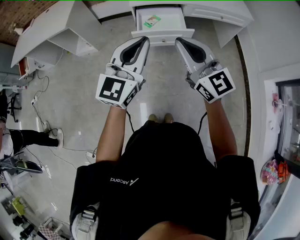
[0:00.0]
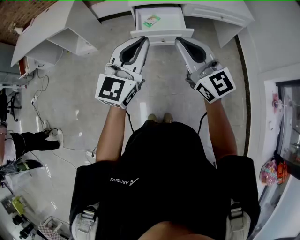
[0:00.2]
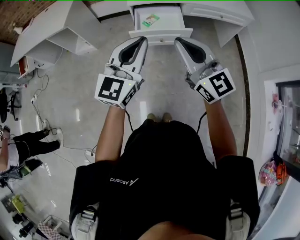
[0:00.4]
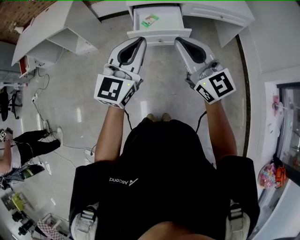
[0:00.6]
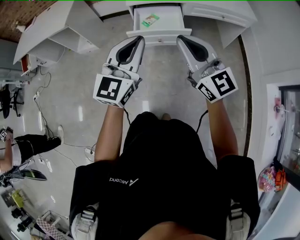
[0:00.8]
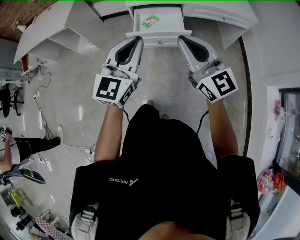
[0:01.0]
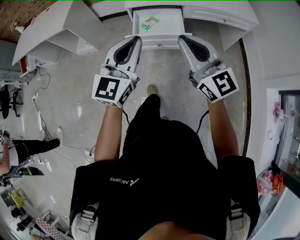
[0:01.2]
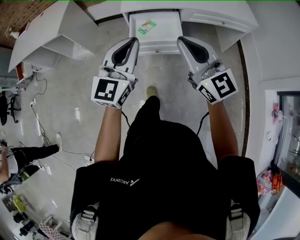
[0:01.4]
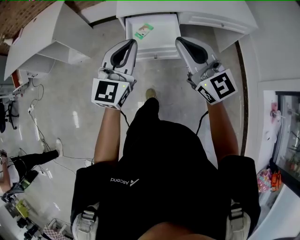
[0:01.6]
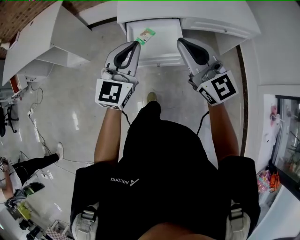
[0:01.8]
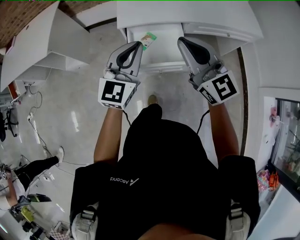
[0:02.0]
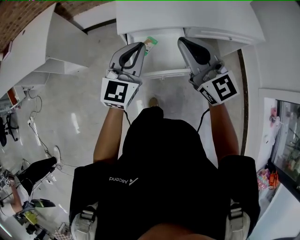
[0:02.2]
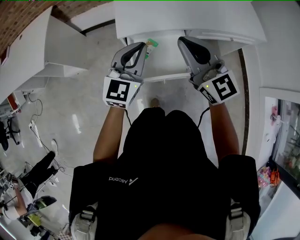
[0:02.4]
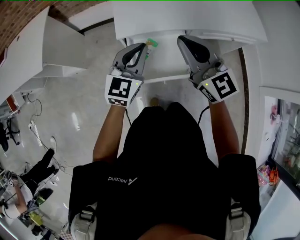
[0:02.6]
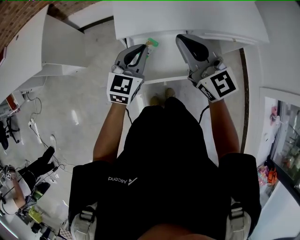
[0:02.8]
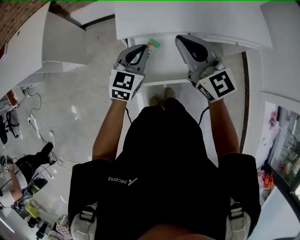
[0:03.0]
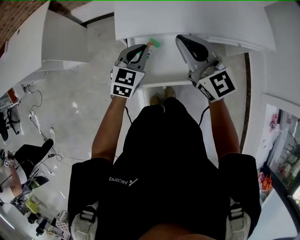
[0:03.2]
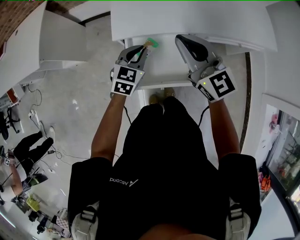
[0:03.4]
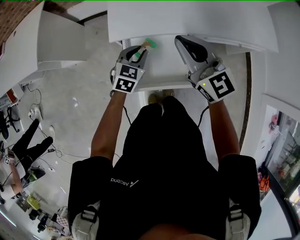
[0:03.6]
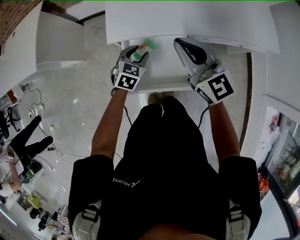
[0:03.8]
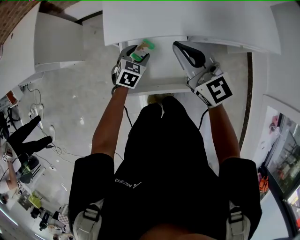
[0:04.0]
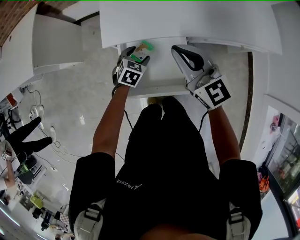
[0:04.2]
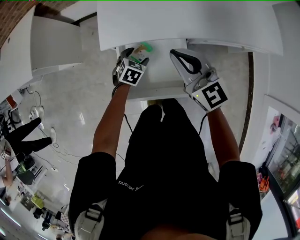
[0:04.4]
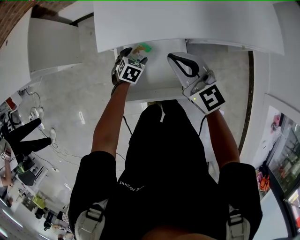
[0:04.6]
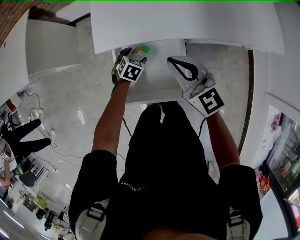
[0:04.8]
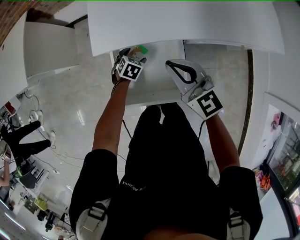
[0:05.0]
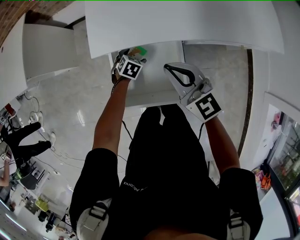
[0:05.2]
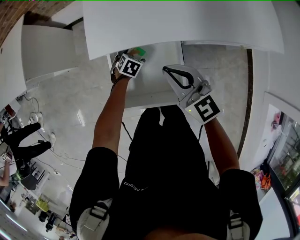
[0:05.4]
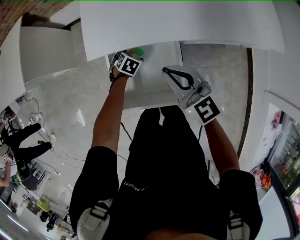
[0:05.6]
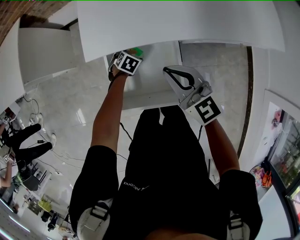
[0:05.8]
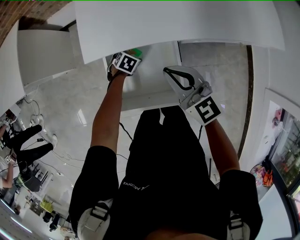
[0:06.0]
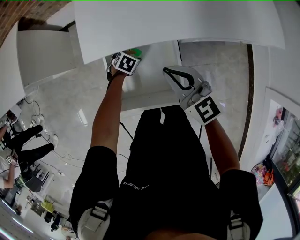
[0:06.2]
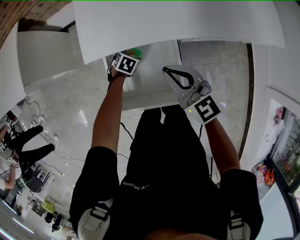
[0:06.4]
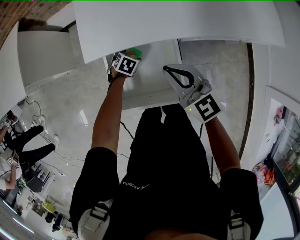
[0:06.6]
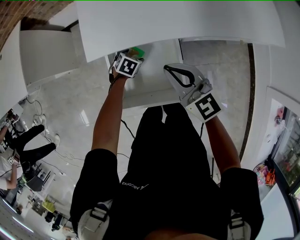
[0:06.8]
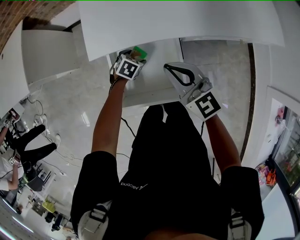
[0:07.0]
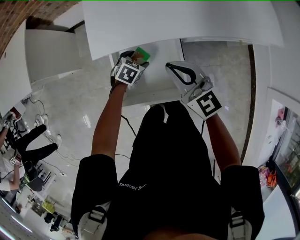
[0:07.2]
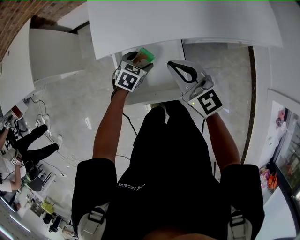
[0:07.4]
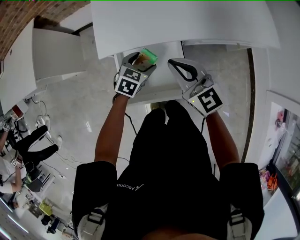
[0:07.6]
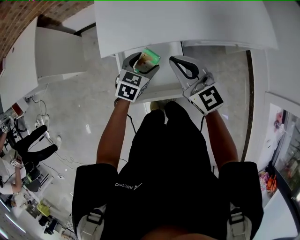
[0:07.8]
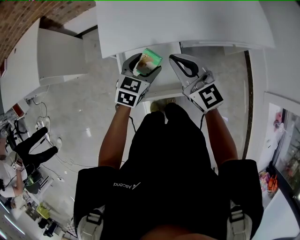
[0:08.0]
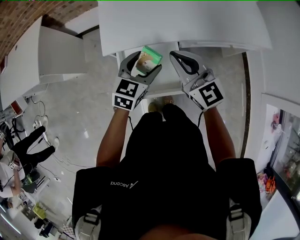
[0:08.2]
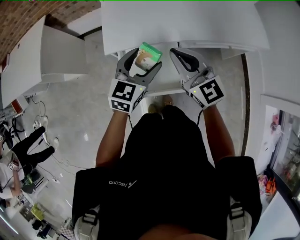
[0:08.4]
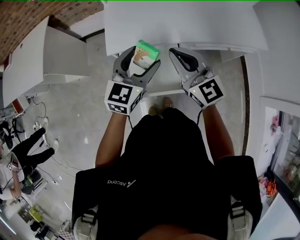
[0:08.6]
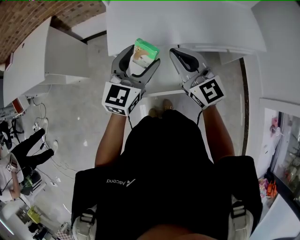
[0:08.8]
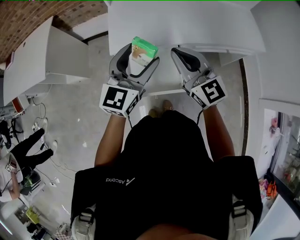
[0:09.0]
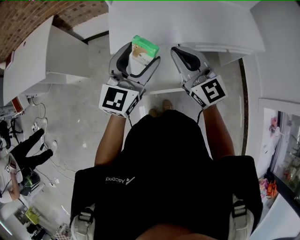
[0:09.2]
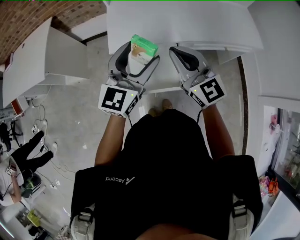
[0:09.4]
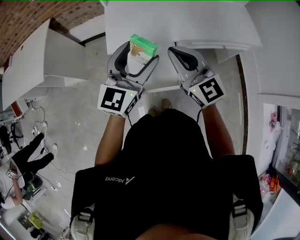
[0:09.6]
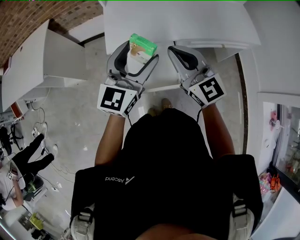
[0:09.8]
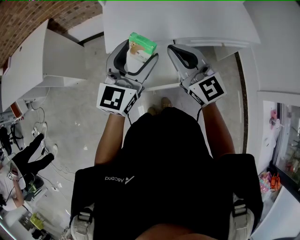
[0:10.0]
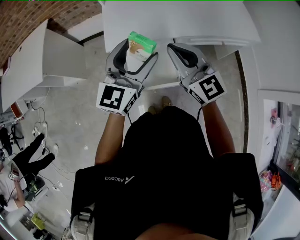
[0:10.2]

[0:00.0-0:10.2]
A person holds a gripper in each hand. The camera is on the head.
0:00.0 to 0:01.4: The right gripper heads forward and to the right, covering some 15 cm, while the left gripper shifts some 15 cm forward.
0:01.4 to 0:03.0: The left gripper shifts some 40 cm forward and downward, and turns by some 20 degrees. Meanwhile the right gripper goes roughly 35 cm forward.
0:03.0 to 0:04.4: The left gripper travels downward by some 25 cm, points its fingers some 40 degrees further downward, and opens. The right gripper is displaced downward, forward and to the right by roughly 15 cm.
0:04.4 to 0:05.8: The left gripper is displaced downward by approximately 10 cm, while the right gripper is displaced downward by about 5 cm.
0:05.8 to 0:07.2: The left gripper moves upward, some 10 cm.
0:07.2 to 0:08.8: The left gripper travels upward by some 40 cm, and points its fingers approximately 50 degrees further upward, while the right gripper heads upward, covering approximately 15 cm.
0:08.8 to 0:10.2: The left gripper is displaced upward by some 5 cm.

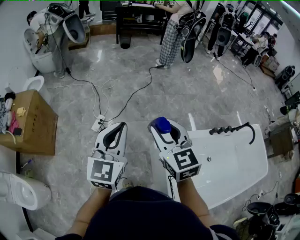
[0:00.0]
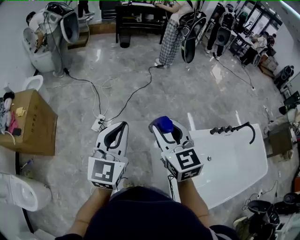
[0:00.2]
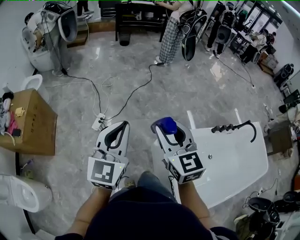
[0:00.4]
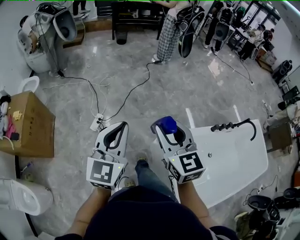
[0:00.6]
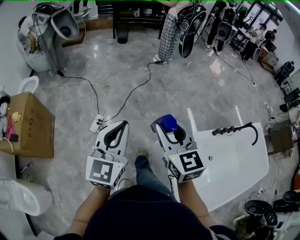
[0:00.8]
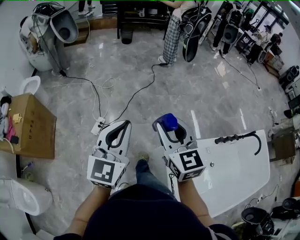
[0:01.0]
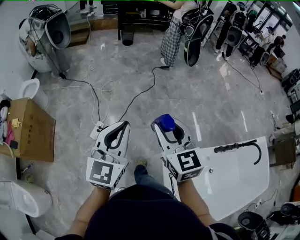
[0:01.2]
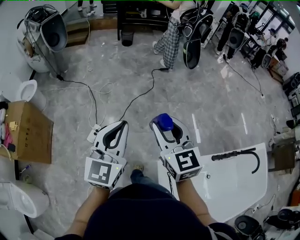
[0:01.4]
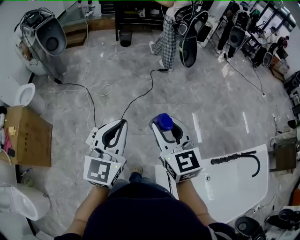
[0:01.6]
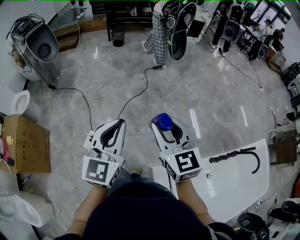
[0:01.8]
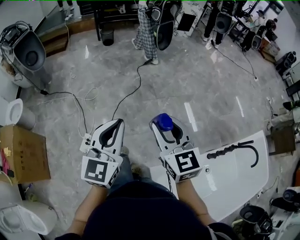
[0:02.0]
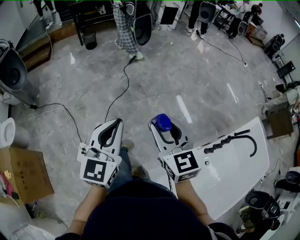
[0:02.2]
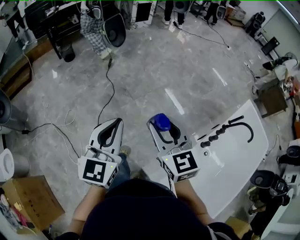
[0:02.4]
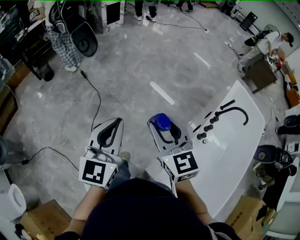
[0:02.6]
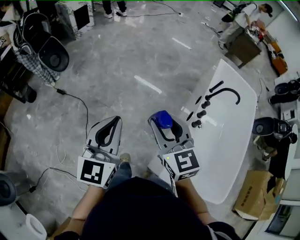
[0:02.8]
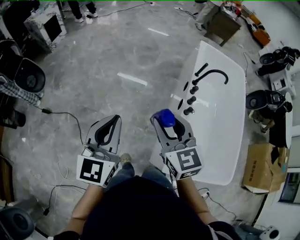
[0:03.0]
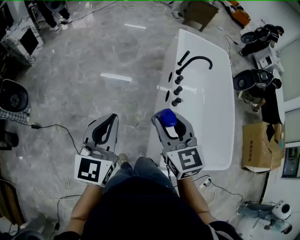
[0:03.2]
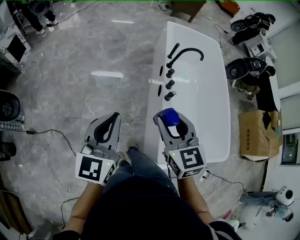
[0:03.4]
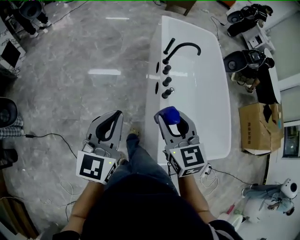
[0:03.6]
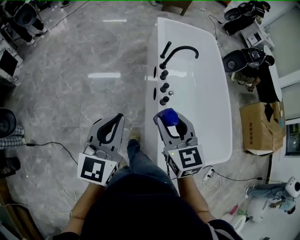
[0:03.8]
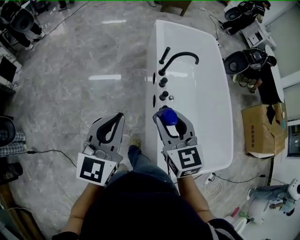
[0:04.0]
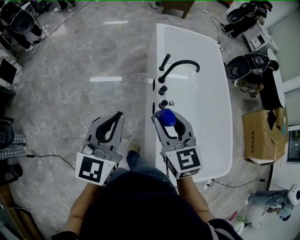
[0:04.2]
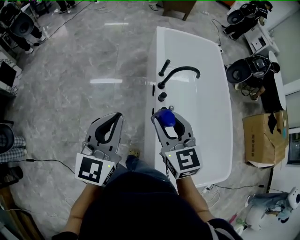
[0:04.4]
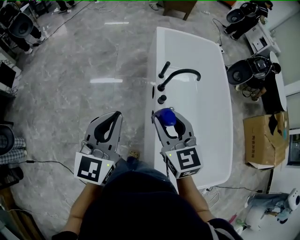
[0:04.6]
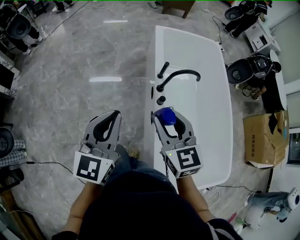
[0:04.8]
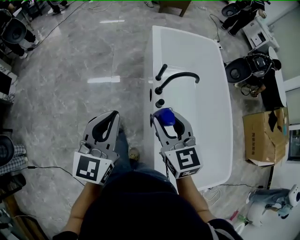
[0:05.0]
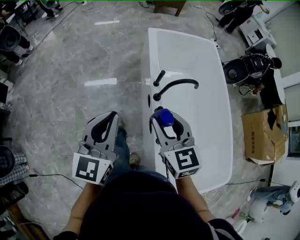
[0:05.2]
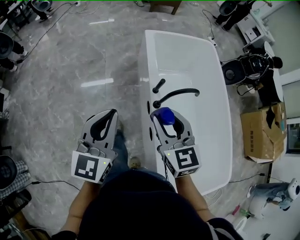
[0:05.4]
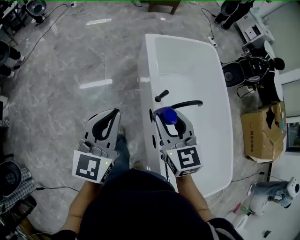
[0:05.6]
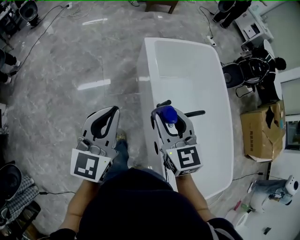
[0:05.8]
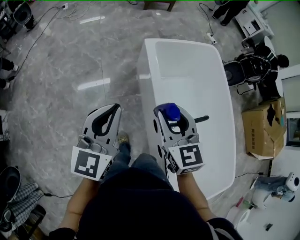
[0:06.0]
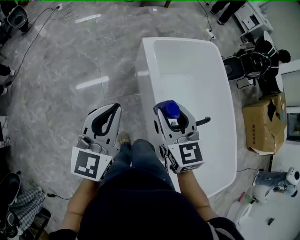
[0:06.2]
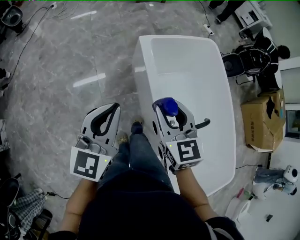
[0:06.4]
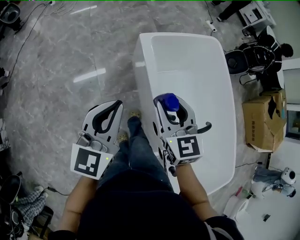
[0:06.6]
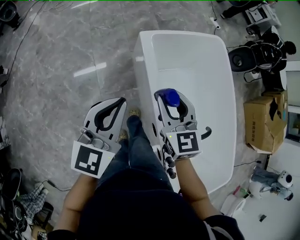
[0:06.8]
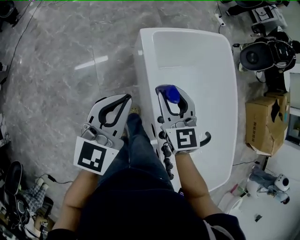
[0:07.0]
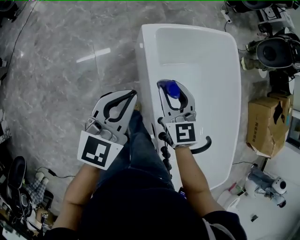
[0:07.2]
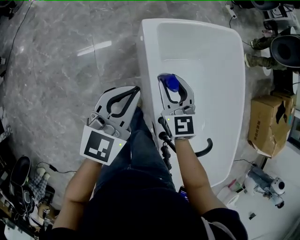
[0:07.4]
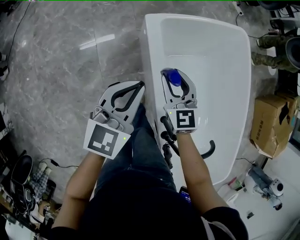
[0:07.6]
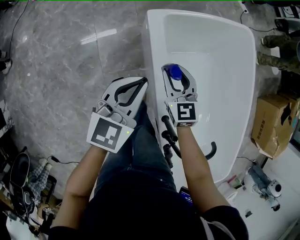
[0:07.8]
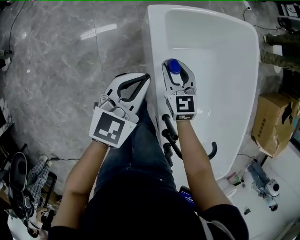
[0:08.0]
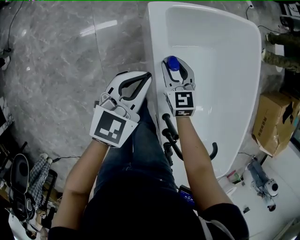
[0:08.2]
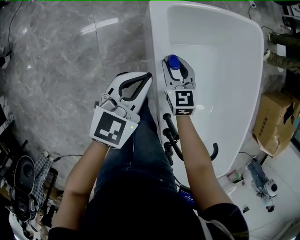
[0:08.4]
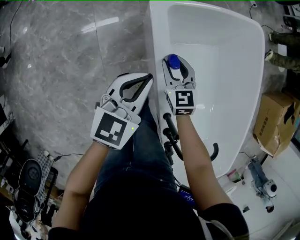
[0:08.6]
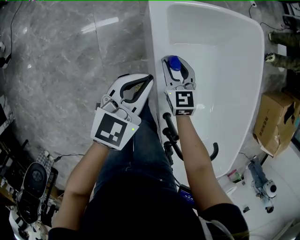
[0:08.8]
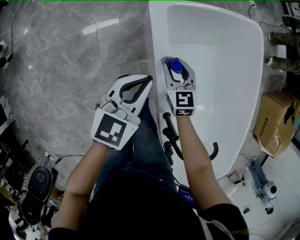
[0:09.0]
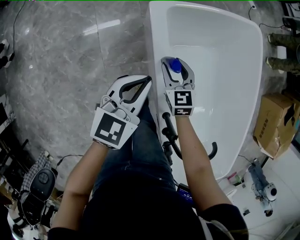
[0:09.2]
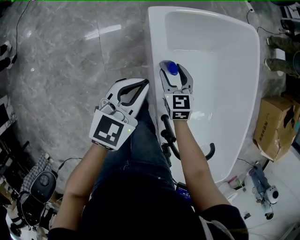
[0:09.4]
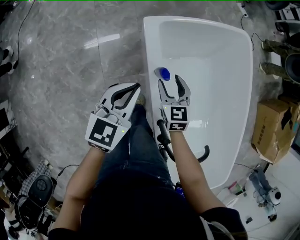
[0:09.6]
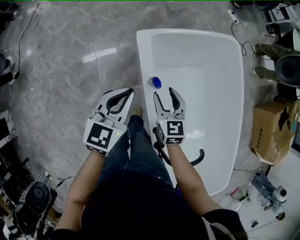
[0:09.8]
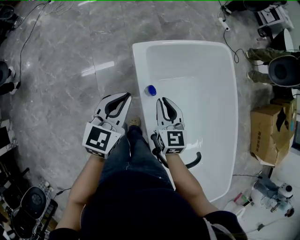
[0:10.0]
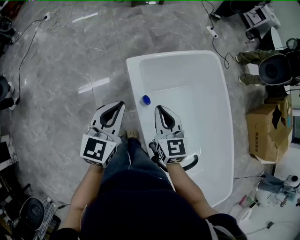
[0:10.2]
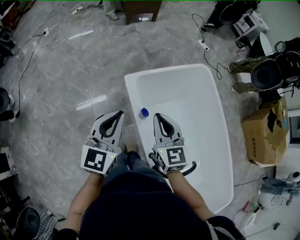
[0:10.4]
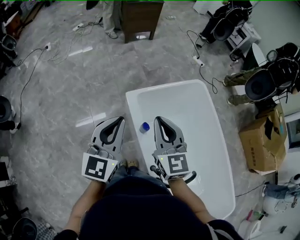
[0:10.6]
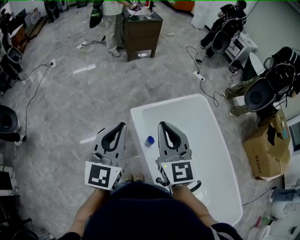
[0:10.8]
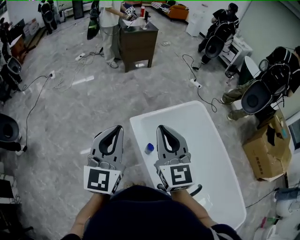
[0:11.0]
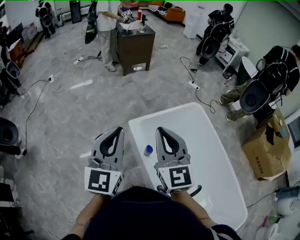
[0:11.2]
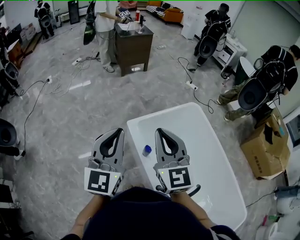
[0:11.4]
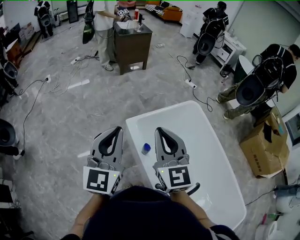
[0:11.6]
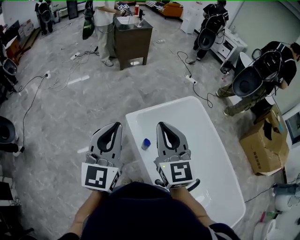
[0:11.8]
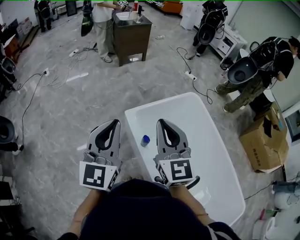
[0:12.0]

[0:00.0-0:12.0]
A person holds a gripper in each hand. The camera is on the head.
0:00.0 to 0:01.6: Both grippers travel together forward, approximately 30 cm.
0:01.6 to 0:03.0: The right gripper ends up approximately 30 cm from where it was, and turns by some 70 degrees. Meanwhile the left gripper changes place by some 40 cm, and rotates some 60 degrees.
0:03.0 to 0:04.4: The two grippers go approximately 35 cm forward and to the right. The right gripper changes its angle by approximately 20 degrees. Meanwhile the left gripper rotates approximately 20 degrees.
0:04.4 to 0:06.0: The pair of grippers is taken forward, some 40 cm.
0:06.0 to 0:07.6: The grippers both shift forward and downward by roughly 35 cm.
0:07.6 to 0:09.0: The right gripper moves downward, approximately 10 cm, while the left gripper heads downward, covering roughly 5 cm.
0:09.0 to 0:10.4: The two grippers go roughly 25 cm upward. The right gripper closes its fingers. The left gripper swivels some 20 degrees.
0:10.4 to 0:12.0: The grippers both shift upward by about 15 cm.

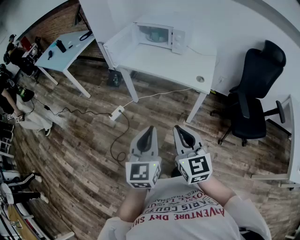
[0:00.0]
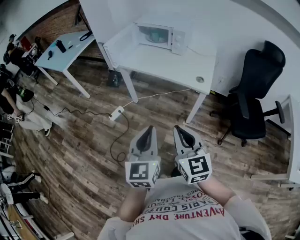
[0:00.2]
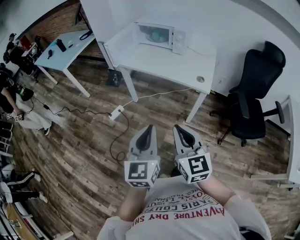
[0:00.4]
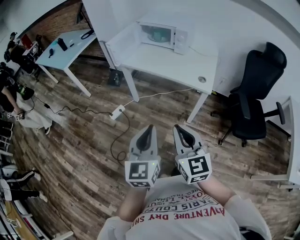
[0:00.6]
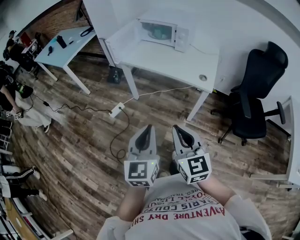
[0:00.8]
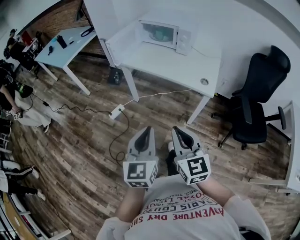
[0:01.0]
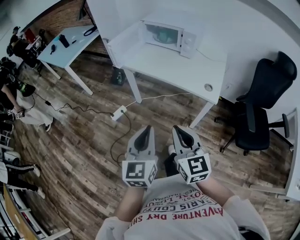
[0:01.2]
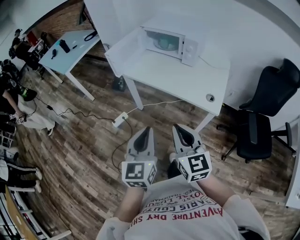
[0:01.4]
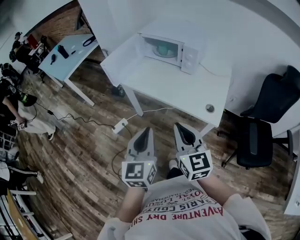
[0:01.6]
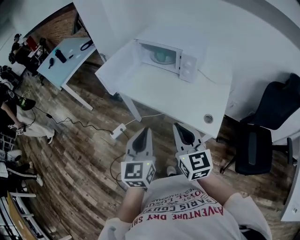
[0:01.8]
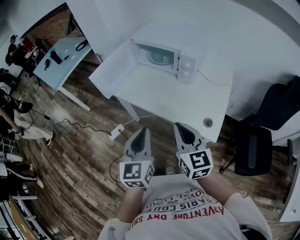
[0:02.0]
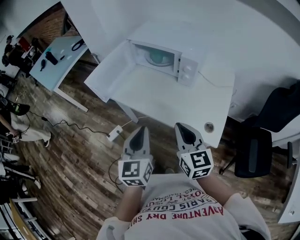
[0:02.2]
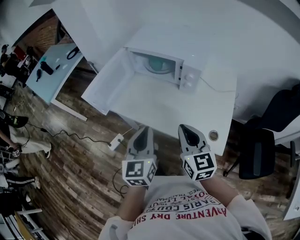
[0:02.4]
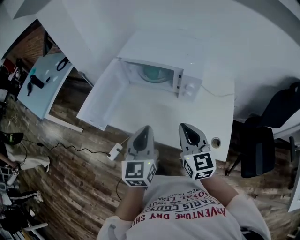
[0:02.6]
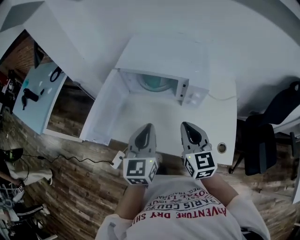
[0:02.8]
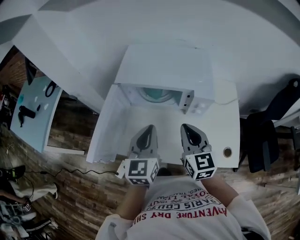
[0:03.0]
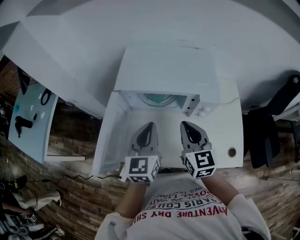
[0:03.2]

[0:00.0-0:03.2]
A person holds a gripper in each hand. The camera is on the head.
0:00.0 to 0:01.6: Both grippers travel together forward, about 25 cm.
0:01.6 to 0:03.2: The pair of grippers is taken roughly 50 cm. The left gripper rotates roughly 20 degrees; the right gripper rotates some 30 degrees.
